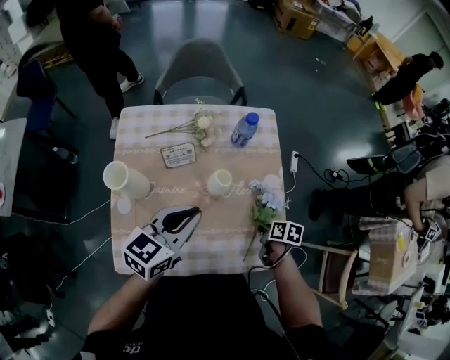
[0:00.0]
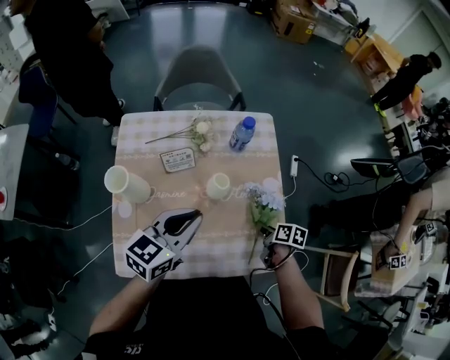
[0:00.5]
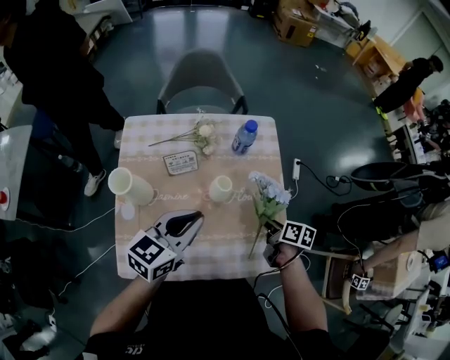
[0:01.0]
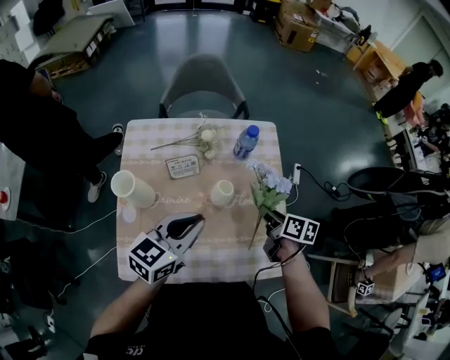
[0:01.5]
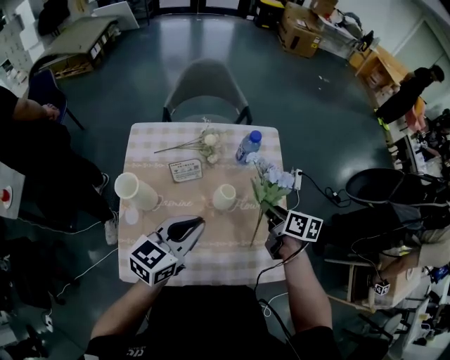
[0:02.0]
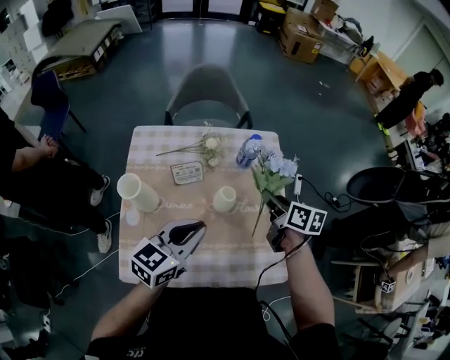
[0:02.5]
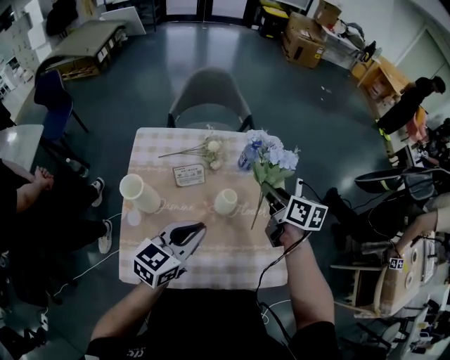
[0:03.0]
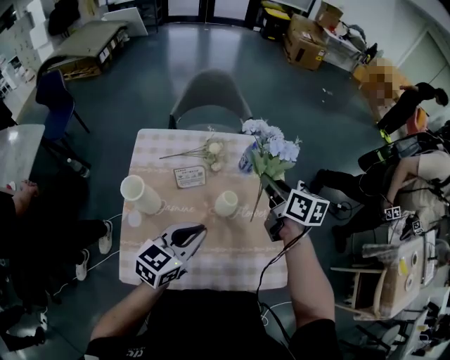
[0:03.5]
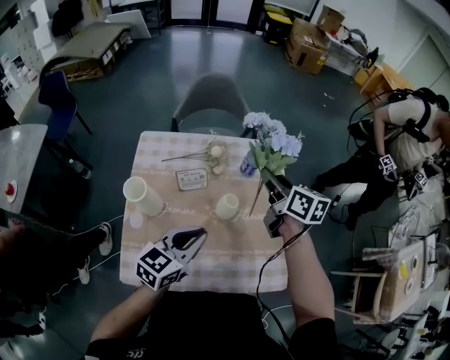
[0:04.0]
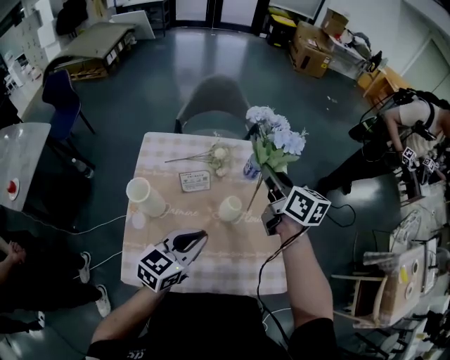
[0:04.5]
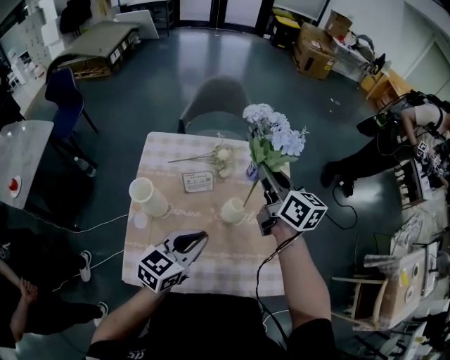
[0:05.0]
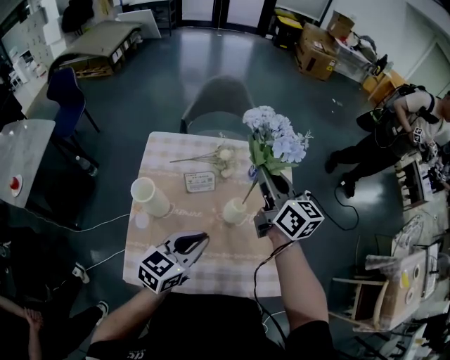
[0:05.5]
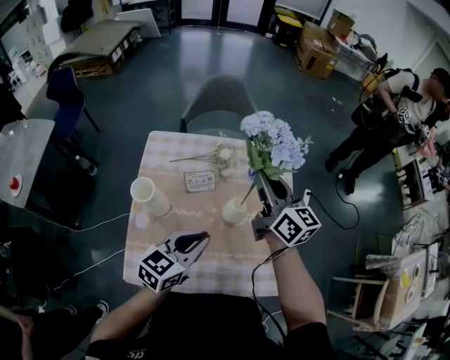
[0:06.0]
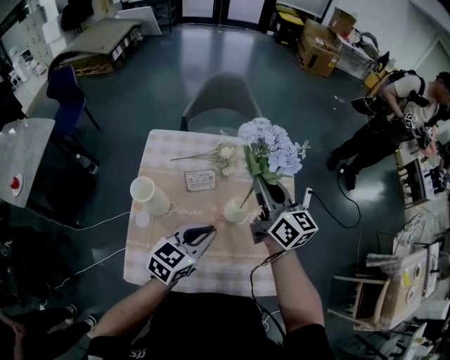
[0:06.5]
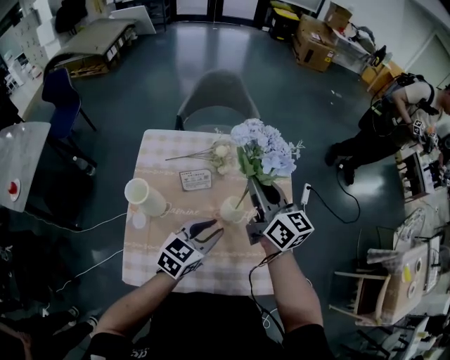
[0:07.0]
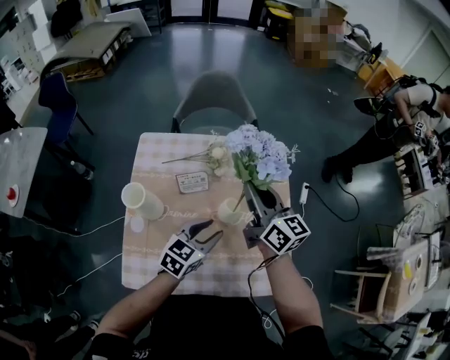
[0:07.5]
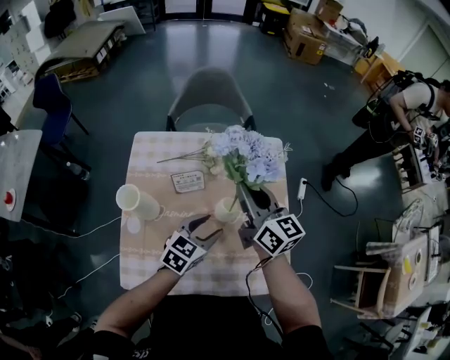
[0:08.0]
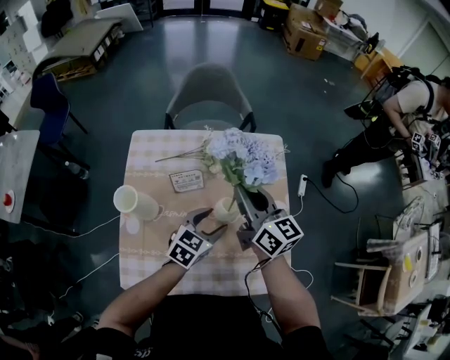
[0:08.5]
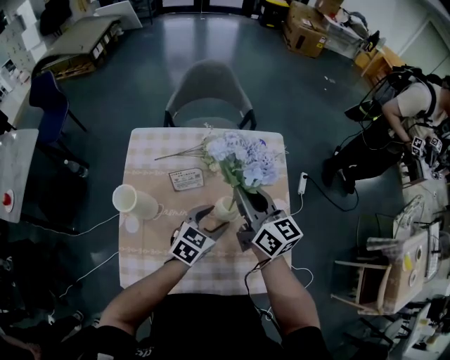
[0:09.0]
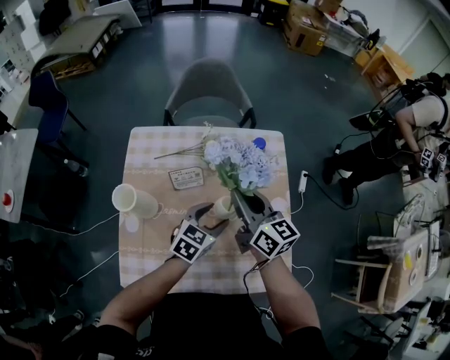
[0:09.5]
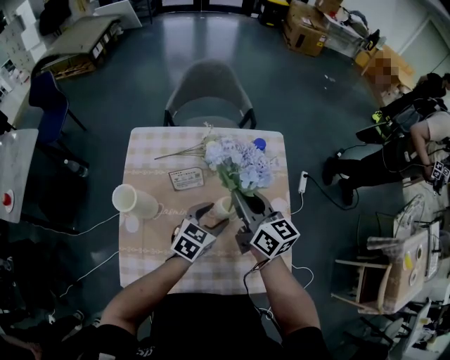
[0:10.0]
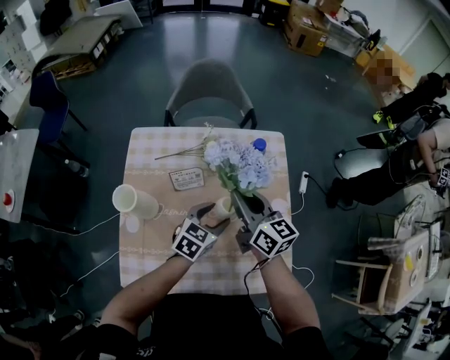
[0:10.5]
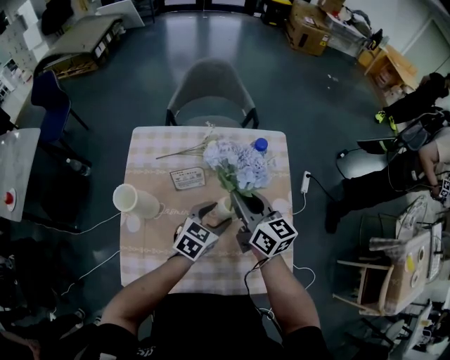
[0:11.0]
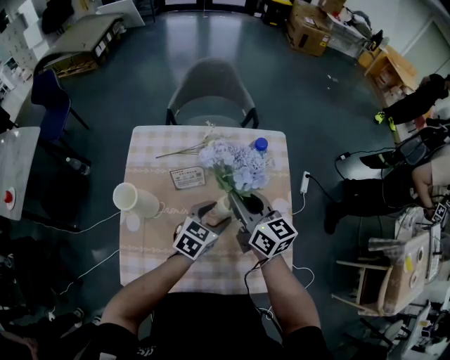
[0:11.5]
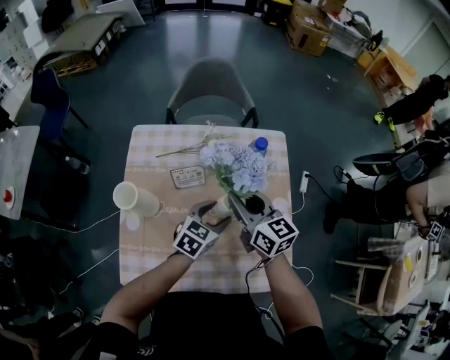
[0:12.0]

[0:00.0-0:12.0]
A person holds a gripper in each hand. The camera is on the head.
0:00.0 to 0:02.0: The right gripper shifts about 20 cm upward and forward, and rotates some 30 degrees.
0:02.0 to 0:04.0: The right gripper moves upward, forward and to the left, approximately 15 cm, and changes its angle by roughly 20 degrees.
0:04.0 to 0:06.0: The right gripper heads to the left, covering about 5 cm, and swivels about 20 degrees.
0:06.0 to 0:08.0: The left gripper shifts roughly 10 cm downward and forward, and opens.
0:08.0 to 0:10.0: The left gripper shifts by about 5 cm.
0:10.0 to 0:12.0: There are only small adjustments of the grippers.

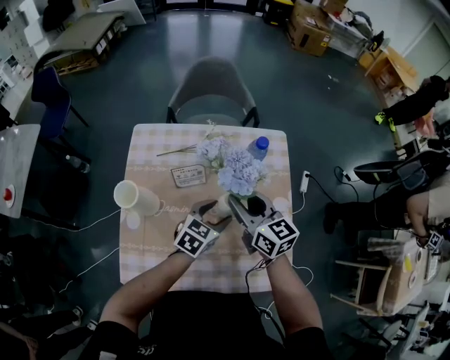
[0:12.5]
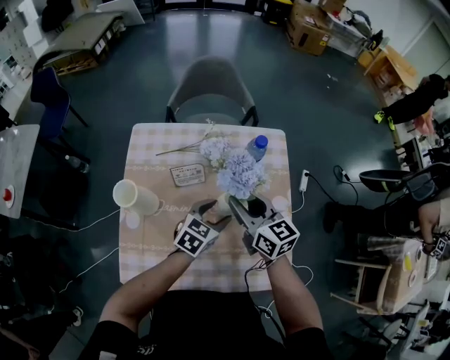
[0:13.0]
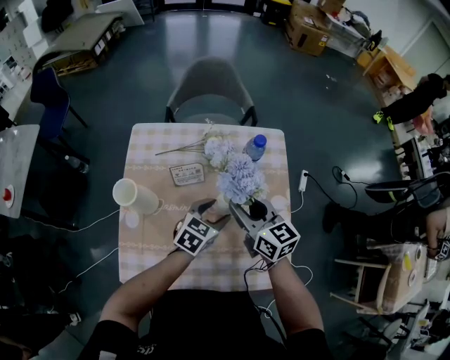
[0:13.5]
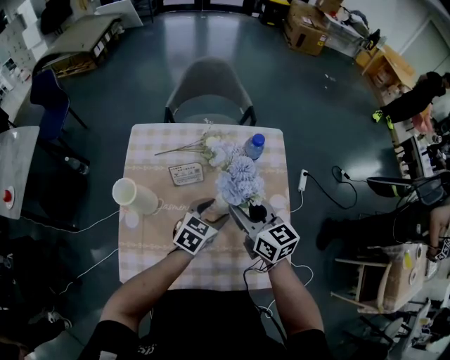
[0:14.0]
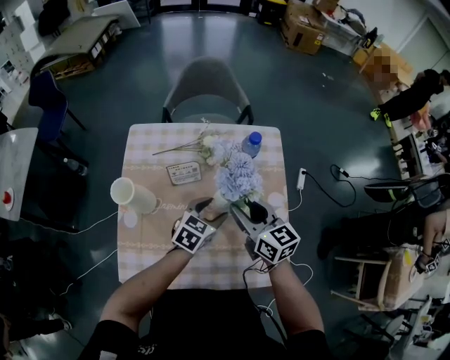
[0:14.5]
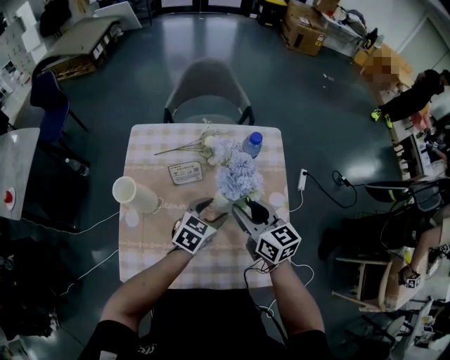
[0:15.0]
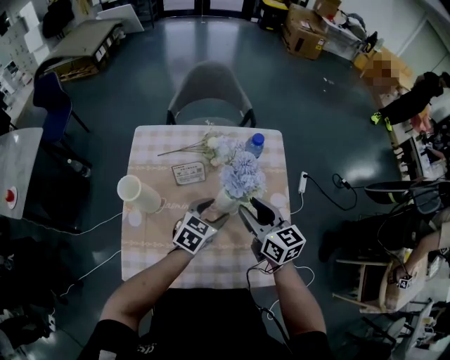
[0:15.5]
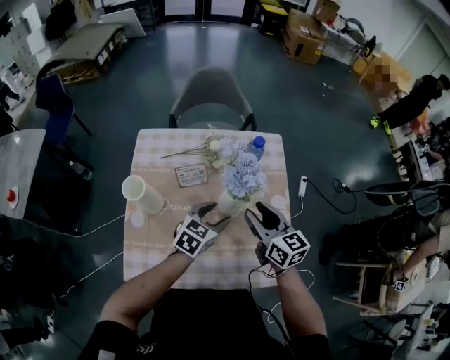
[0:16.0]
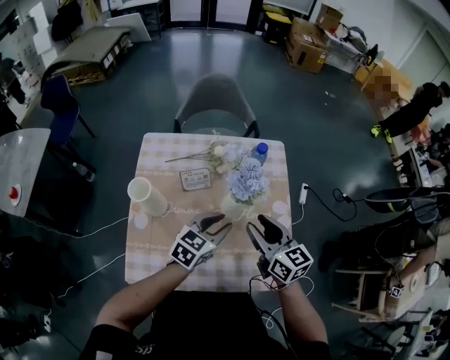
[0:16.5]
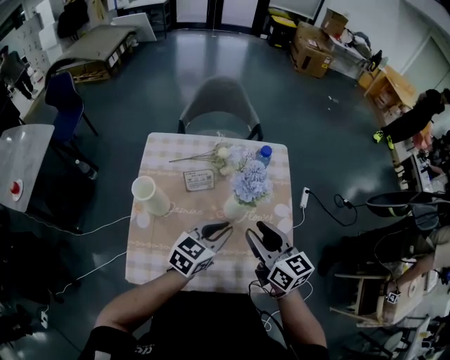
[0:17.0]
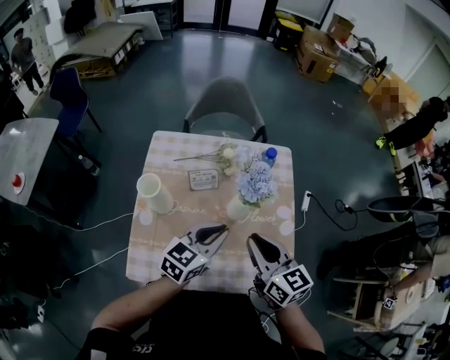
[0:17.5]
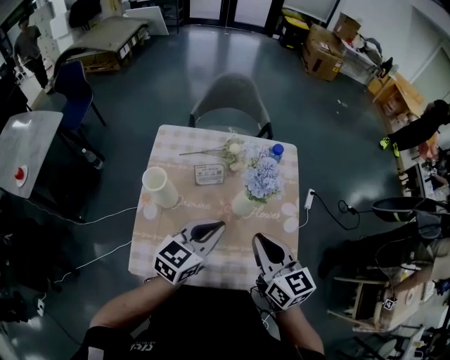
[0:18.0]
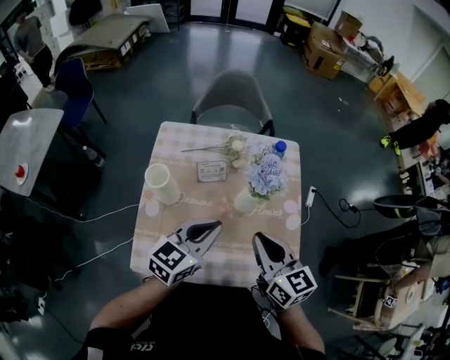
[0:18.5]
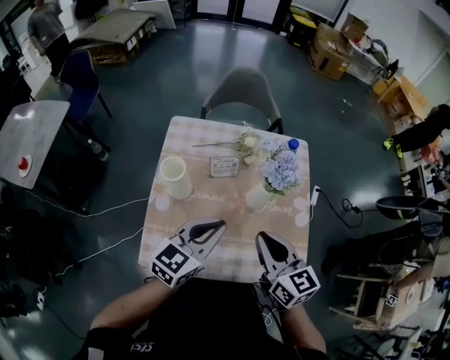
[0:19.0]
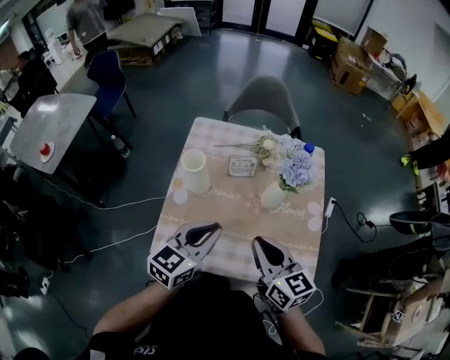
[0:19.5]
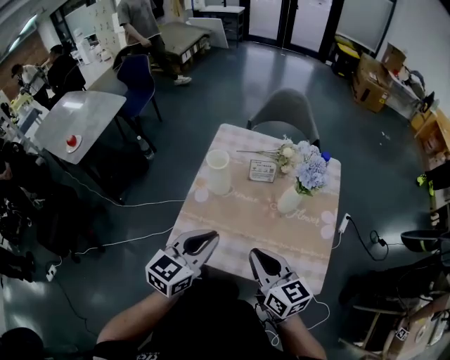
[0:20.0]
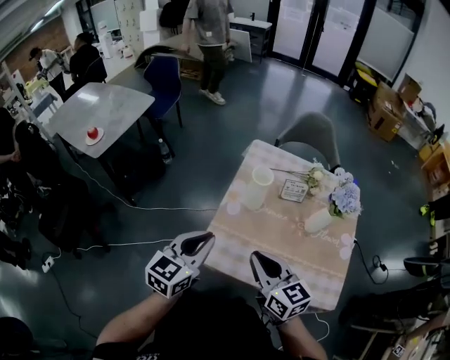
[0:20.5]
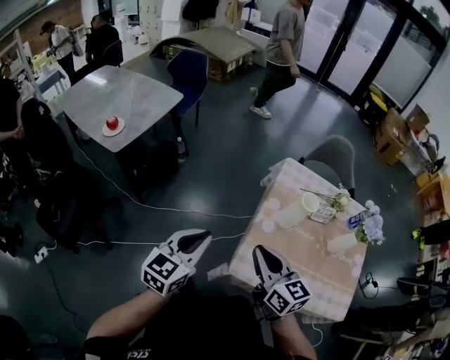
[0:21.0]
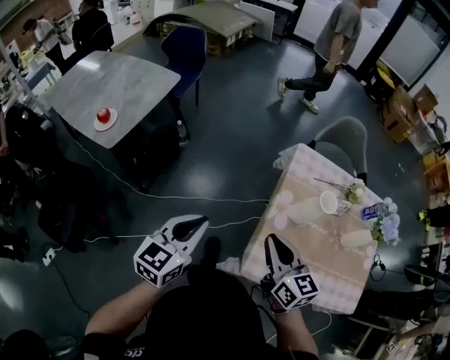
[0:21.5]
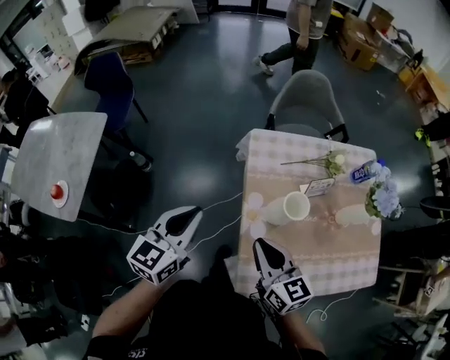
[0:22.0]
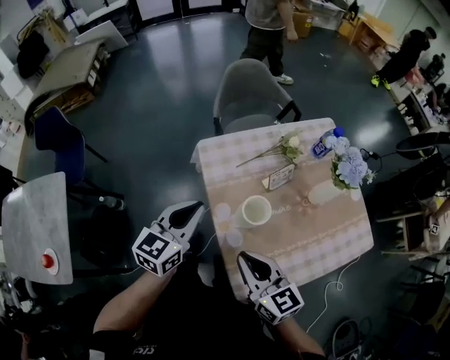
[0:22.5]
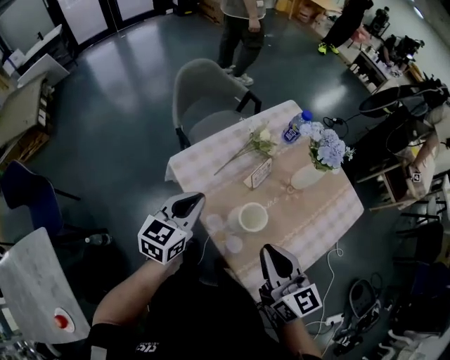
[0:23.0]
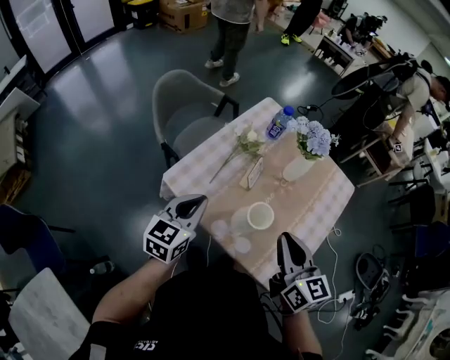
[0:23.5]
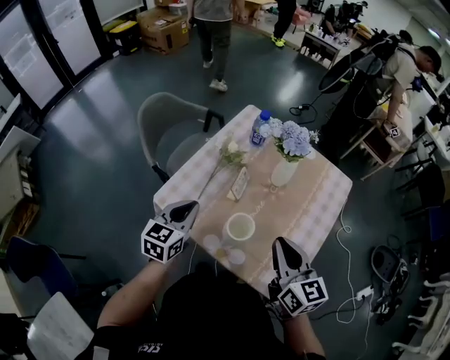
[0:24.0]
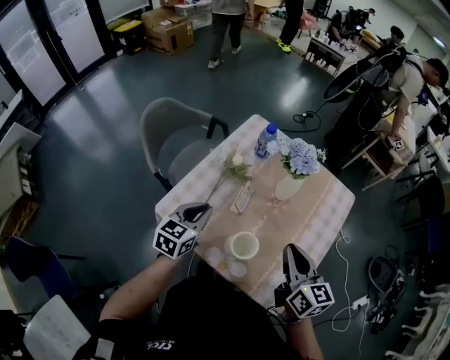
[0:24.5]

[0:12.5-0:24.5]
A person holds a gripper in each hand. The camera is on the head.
0:12.5 to 0:14.5: The grippers make only small movements.
0:14.5 to 0:16.5: The left gripper shifts about 10 cm upward and backward; the right gripper goes about 5 cm backward.
0:16.5 to 0:18.5: The right gripper goes about 10 cm backward and upward, and closes. Meanwhile the left gripper travels upward, to the left and backward by roughly 15 cm.
0:18.5 to 0:20.5: The two grippers go roughly 30 cm to the left and backward. The right gripper rotates about 20 degrees; the left gripper changes its angle by roughly 30 degrees.
0:20.5 to 0:22.5: The right gripper ends up roughly 25 cm from where it was, and swivels approximately 30 degrees, while the left gripper ends up approximately 35 cm from where it was, and rotates about 30 degrees.
0:22.5 to 0:24.5: The right gripper ends up about 15 cm from where it was, and turns by about 60 degrees. The left gripper moves roughly 20 cm, and turns by approximately 40 degrees.

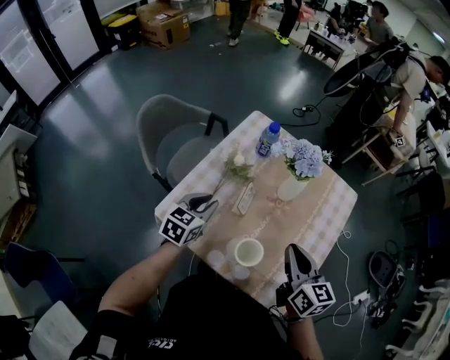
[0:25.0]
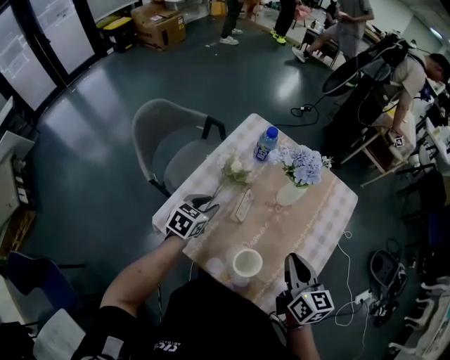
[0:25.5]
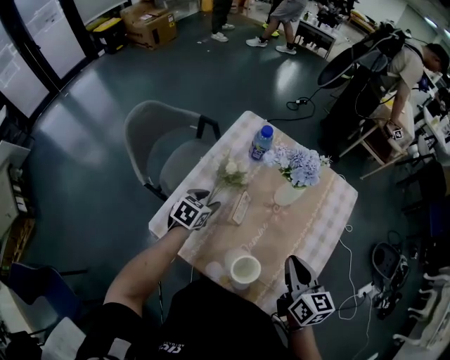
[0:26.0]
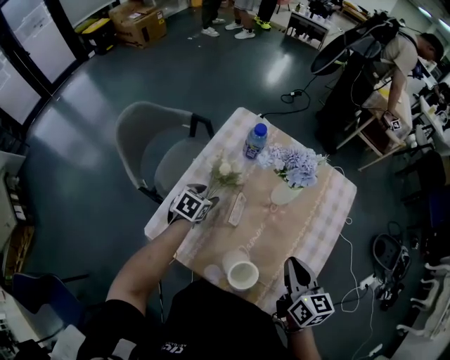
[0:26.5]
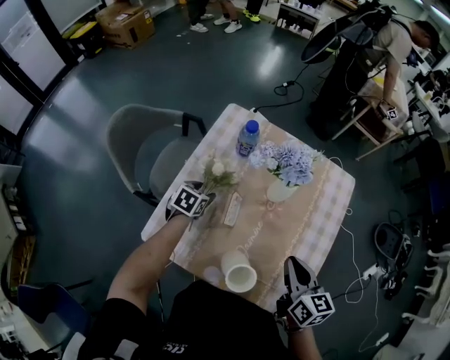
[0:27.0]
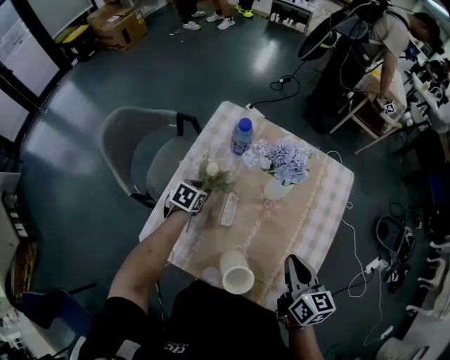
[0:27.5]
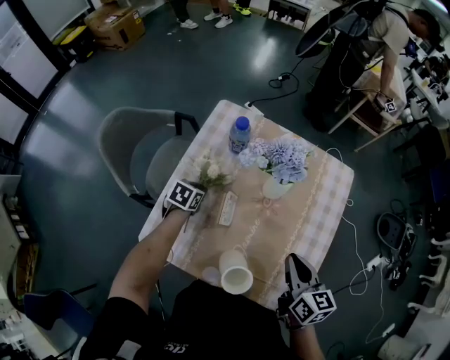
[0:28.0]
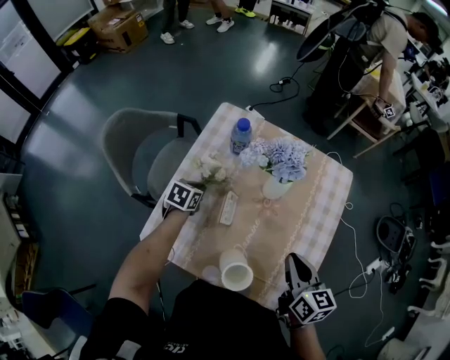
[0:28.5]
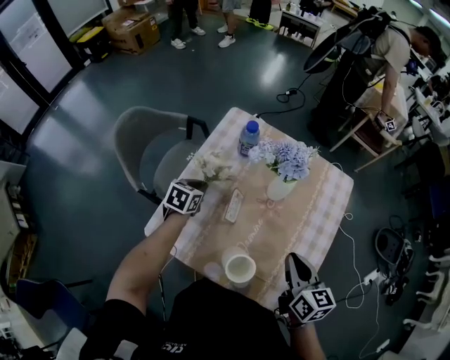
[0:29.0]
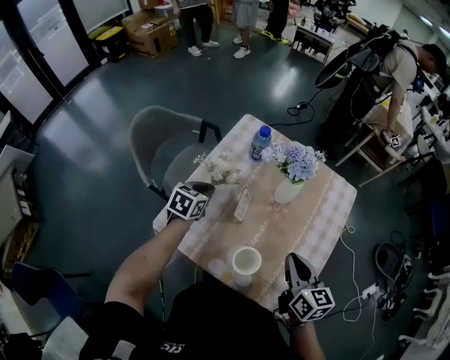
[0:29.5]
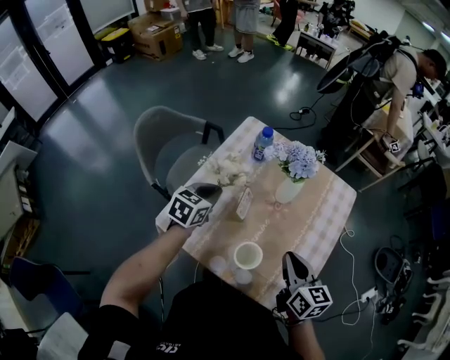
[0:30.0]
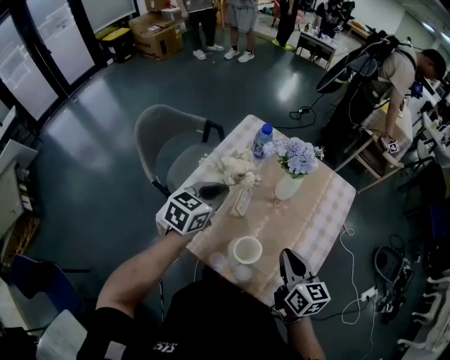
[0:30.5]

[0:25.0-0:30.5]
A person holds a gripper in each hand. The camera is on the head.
0:25.0 to 0:27.0: The right gripper shifts approximately 5 cm downward, while the left gripper is displaced downward and forward by about 20 cm, turns by some 20 degrees, and opens up.
0:27.0 to 0:28.5: The left gripper closes.
0:28.5 to 0:30.5: The right gripper moves some 5 cm; the left gripper moves upward and backward, about 25 cm, and turns by some 30 degrees.
